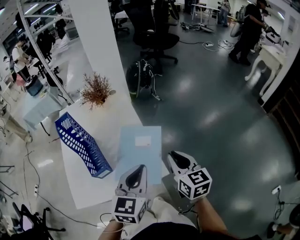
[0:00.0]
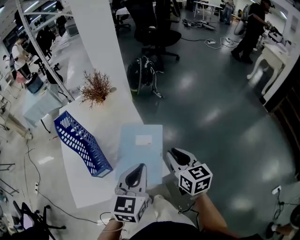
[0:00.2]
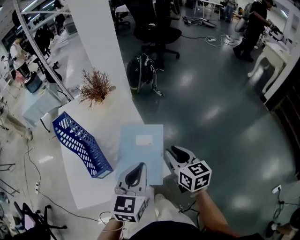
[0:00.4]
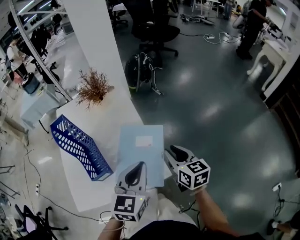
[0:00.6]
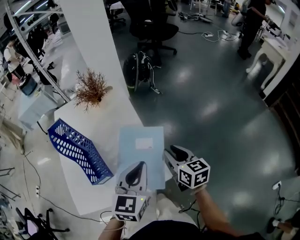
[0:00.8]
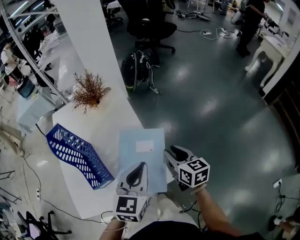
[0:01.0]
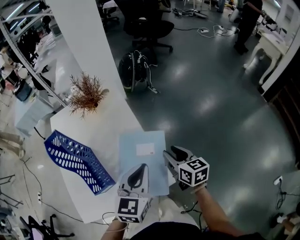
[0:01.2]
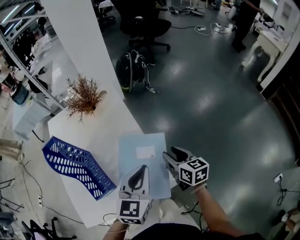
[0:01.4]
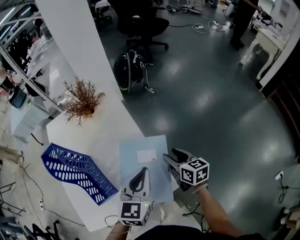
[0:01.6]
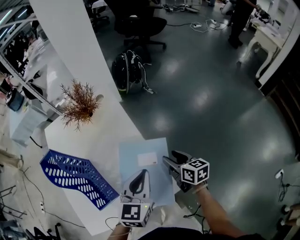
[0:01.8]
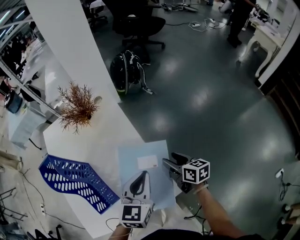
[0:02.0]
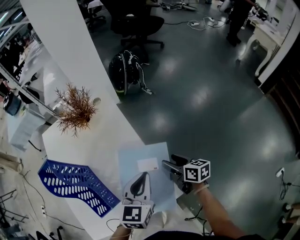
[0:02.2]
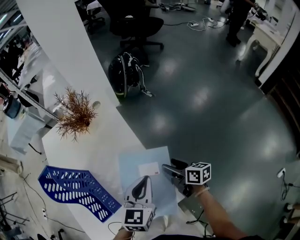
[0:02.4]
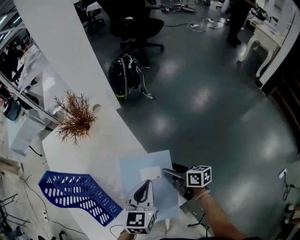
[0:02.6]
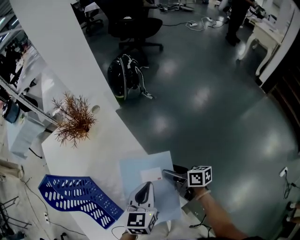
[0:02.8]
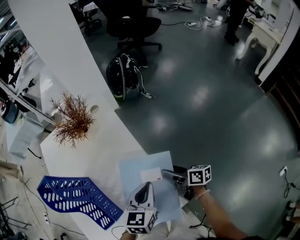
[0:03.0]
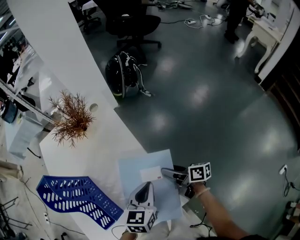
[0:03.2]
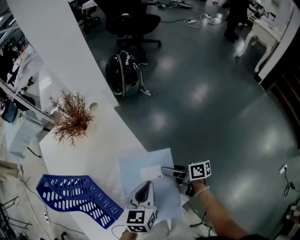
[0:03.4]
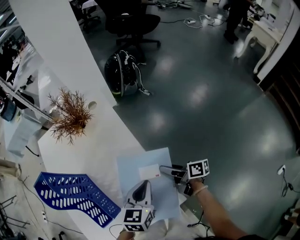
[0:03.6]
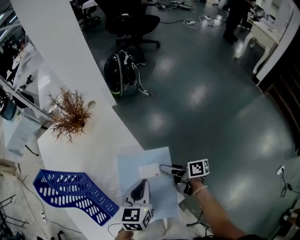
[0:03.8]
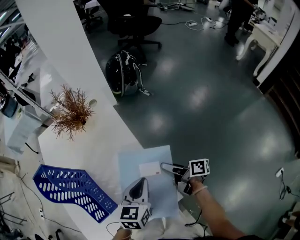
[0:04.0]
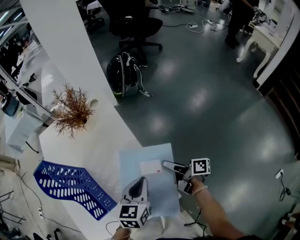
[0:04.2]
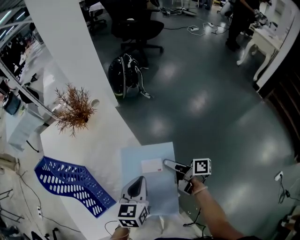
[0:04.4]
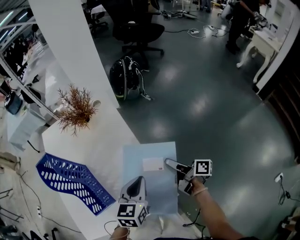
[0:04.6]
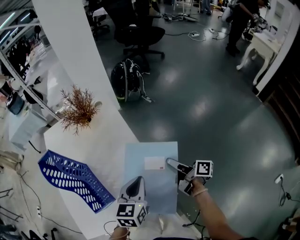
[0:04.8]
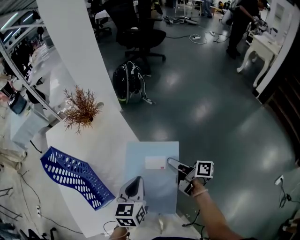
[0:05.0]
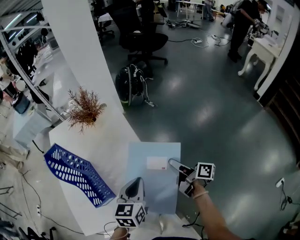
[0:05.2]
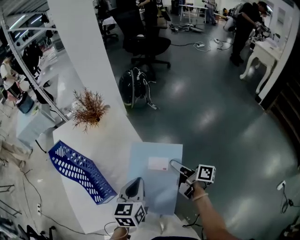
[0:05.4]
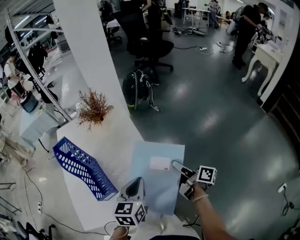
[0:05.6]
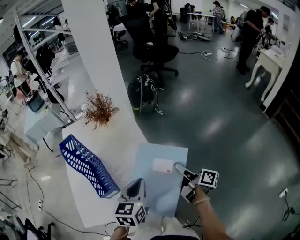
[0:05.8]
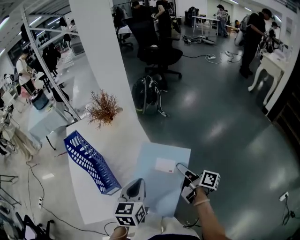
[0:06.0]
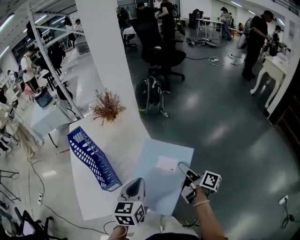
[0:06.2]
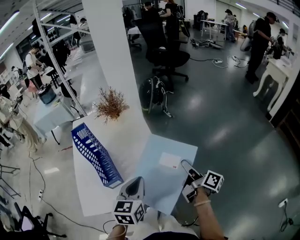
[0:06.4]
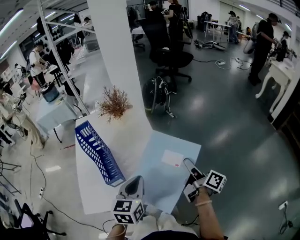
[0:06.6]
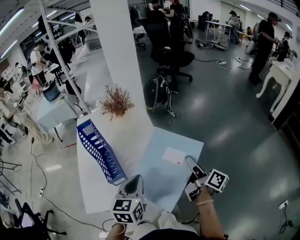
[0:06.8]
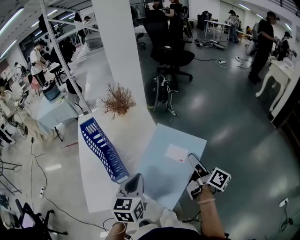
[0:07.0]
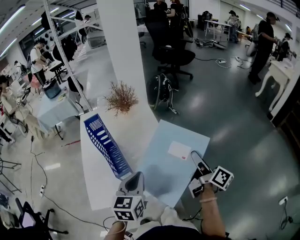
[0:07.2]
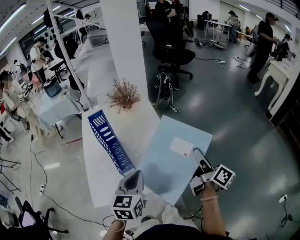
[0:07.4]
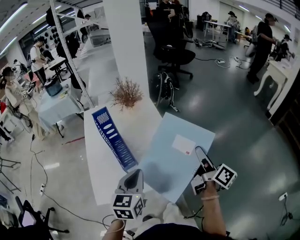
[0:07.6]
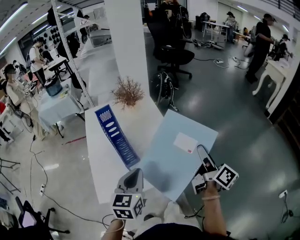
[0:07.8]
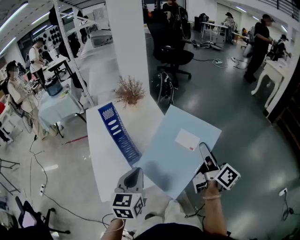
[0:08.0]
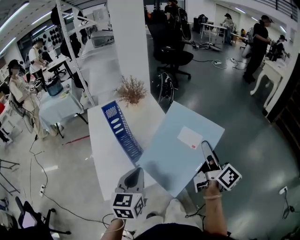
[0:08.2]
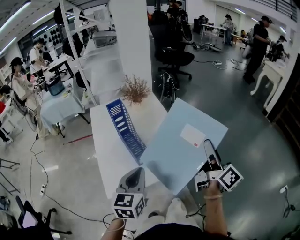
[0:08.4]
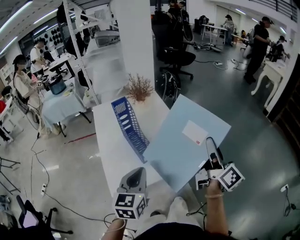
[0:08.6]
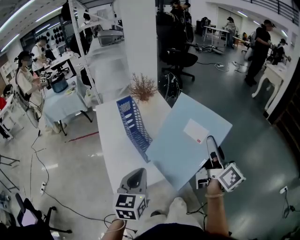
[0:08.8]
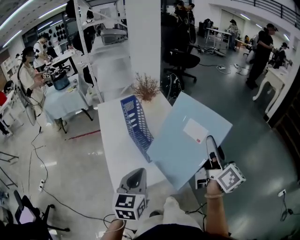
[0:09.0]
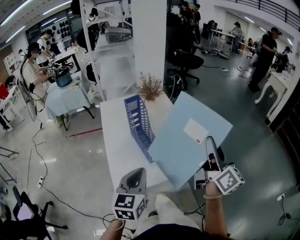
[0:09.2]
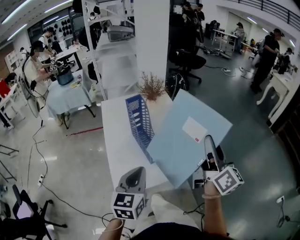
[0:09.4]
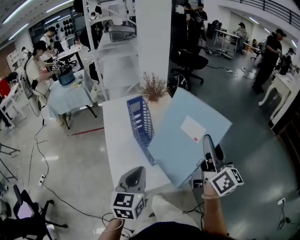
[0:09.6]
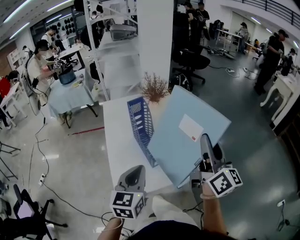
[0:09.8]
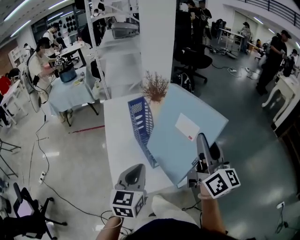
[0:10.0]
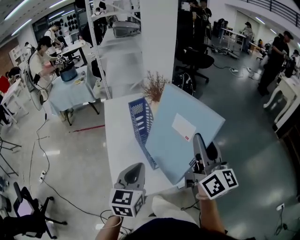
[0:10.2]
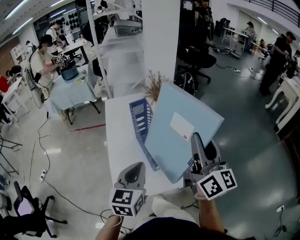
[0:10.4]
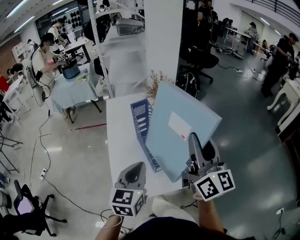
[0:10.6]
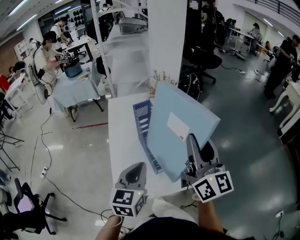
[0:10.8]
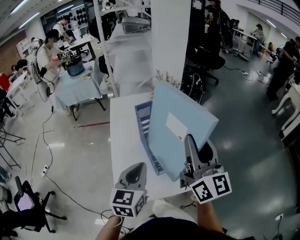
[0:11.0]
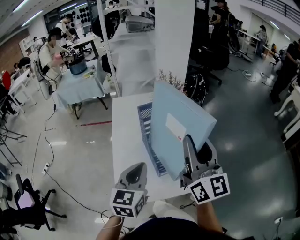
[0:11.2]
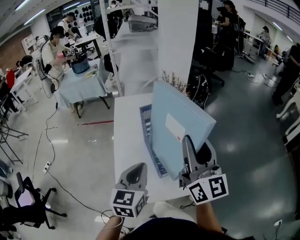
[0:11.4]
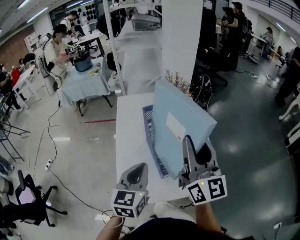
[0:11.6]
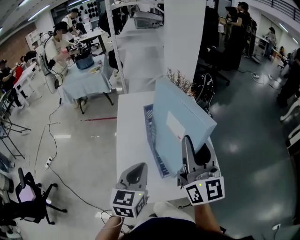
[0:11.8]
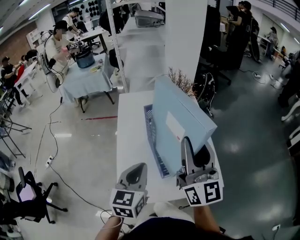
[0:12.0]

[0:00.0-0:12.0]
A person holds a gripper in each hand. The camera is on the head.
0.0 to 1.6 s: Both grippers move forward and downward, roughly 15 cm. The right gripper opens up.
1.6 to 3.0 s: Both grippers travel together downward, approximately 10 cm. The right gripper swivels approximately 30 degrees, and opens its fingers.
3.0 to 4.4 s: The right gripper moves about 5 cm, and closes its fingers.
4.4 to 6.0 s: The grippers both shift backward and upward by some 15 cm.
6.0 to 7.6 s: The left gripper moves to the left and backward, roughly 15 cm, while the right gripper heads upward and backward, covering roughly 15 cm, and changes its angle by approximately 20 degrees.
7.6 to 9.0 s: The left gripper goes roughly 15 cm to the left and backward, while the right gripper moves upward, to the left and backward, about 20 cm, and turns by roughly 30 degrees.
9.0 to 10.4 s: The left gripper heads forward, covering about 10 cm, while the right gripper travels to the left and forward by roughly 15 cm.
10.4 to 12.0 s: The left gripper goes roughly 5 cm forward. The right gripper travels to the left and forward by about 10 cm.

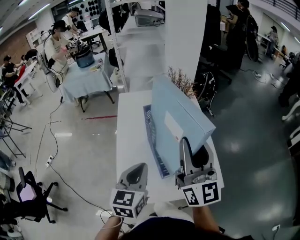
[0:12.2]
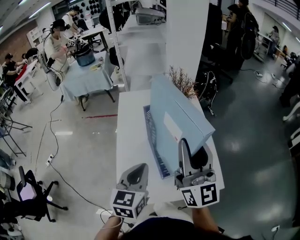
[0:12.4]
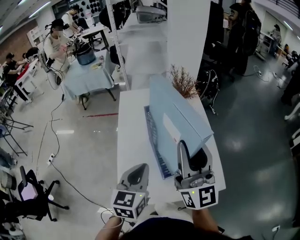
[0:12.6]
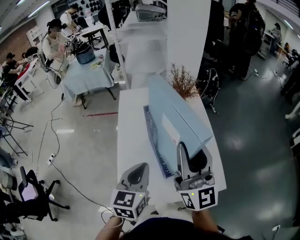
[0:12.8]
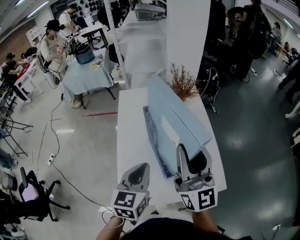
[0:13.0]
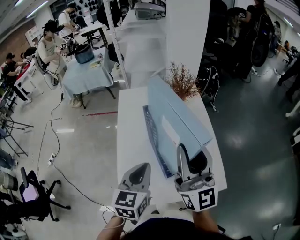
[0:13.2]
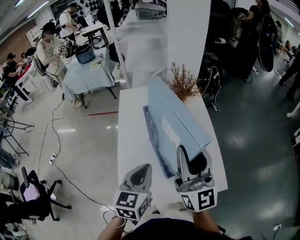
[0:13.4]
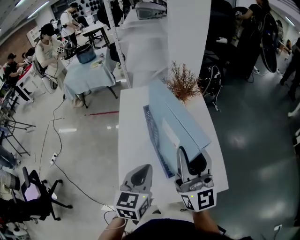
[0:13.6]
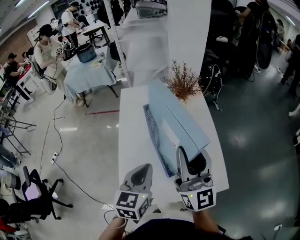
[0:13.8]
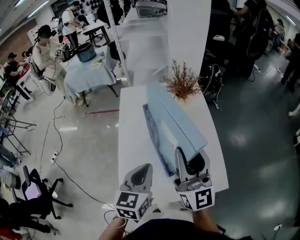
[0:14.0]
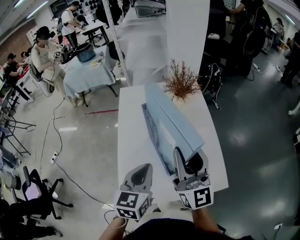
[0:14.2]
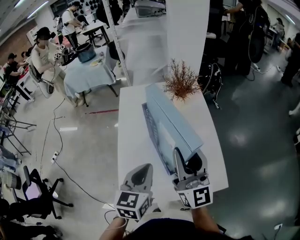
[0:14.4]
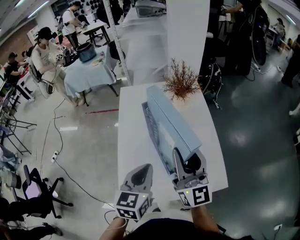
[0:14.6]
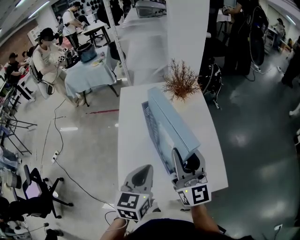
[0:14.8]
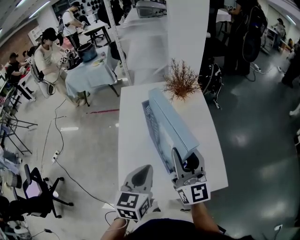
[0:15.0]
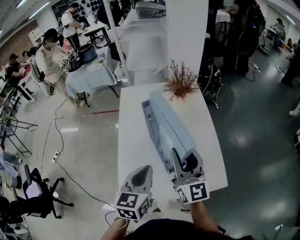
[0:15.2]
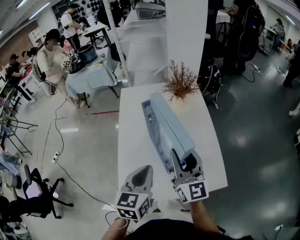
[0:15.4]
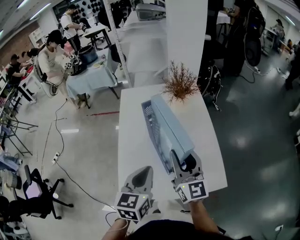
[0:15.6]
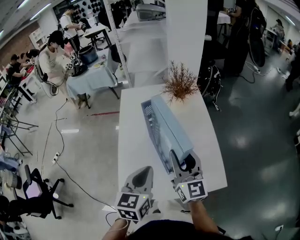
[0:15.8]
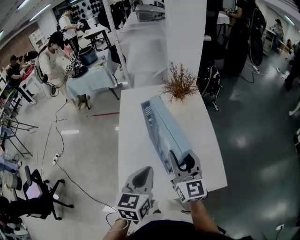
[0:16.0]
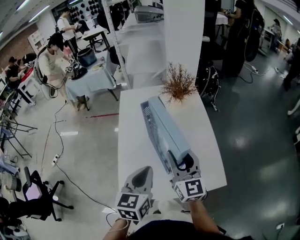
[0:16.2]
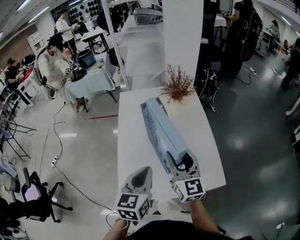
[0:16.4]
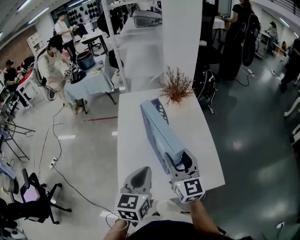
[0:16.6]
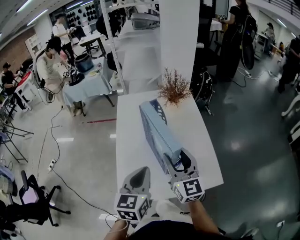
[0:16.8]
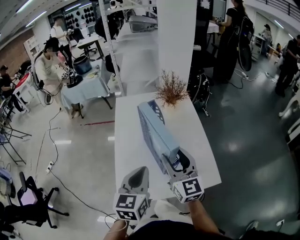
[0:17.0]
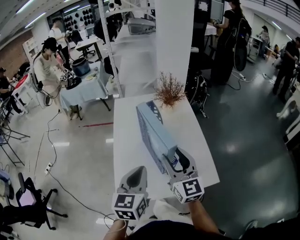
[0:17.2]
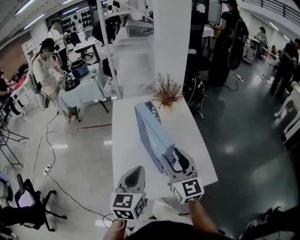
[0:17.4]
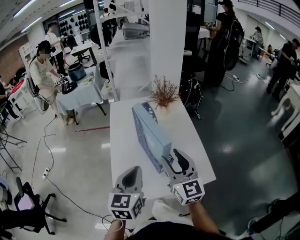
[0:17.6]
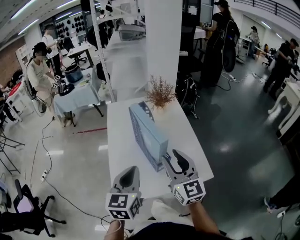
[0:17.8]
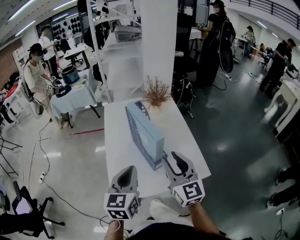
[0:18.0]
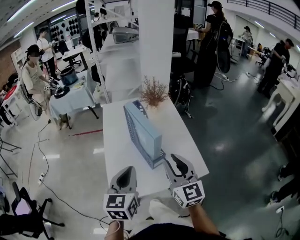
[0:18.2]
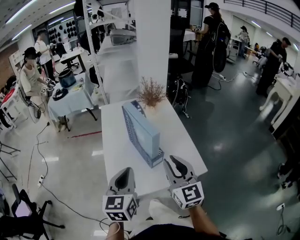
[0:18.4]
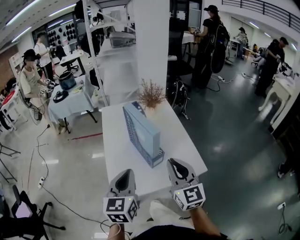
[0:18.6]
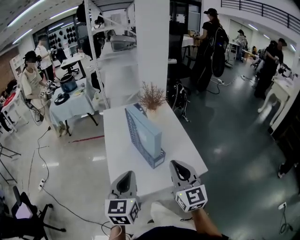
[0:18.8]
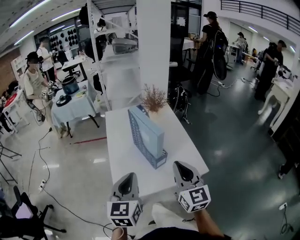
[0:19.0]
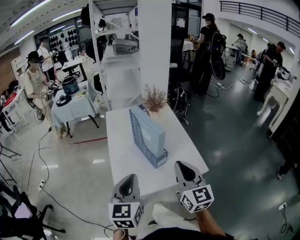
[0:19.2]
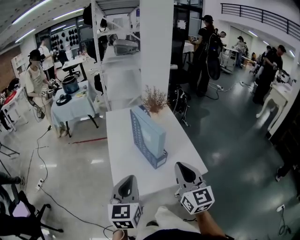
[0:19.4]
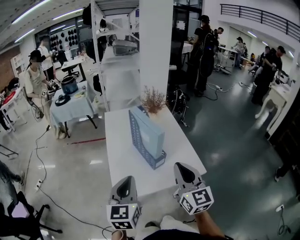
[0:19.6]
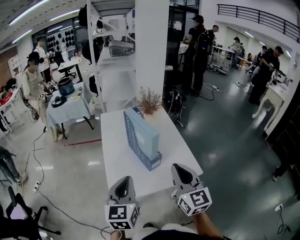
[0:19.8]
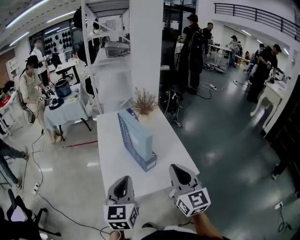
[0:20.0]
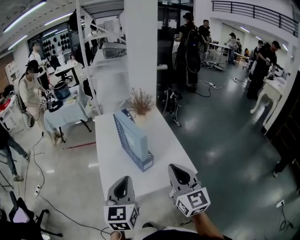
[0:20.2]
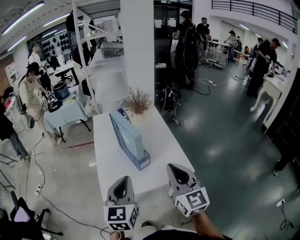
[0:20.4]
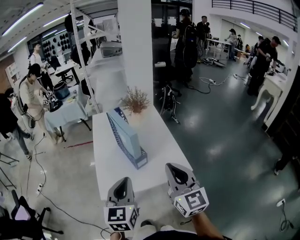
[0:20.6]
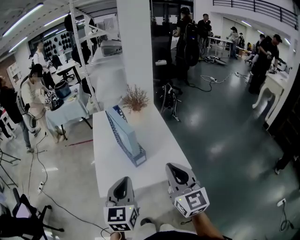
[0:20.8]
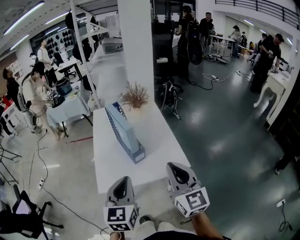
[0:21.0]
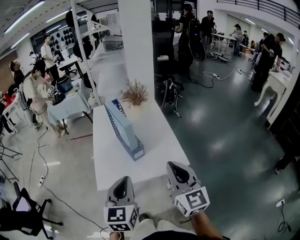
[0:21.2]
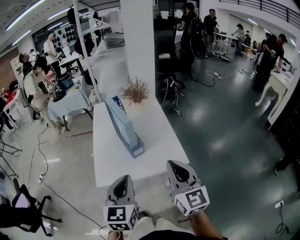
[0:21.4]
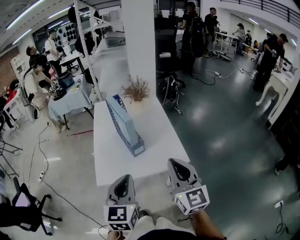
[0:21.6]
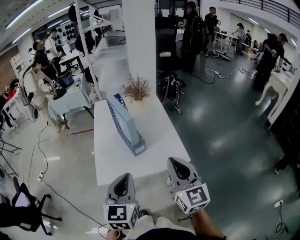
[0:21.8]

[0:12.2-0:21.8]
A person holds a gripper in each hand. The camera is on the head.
12.2 to 13.8 s: The grippers move only a little.
13.8 to 15.4 s: The right gripper heads downward, covering some 10 cm.
15.4 to 17.0 s: There are only small adjustments of the grippers.
17.0 to 18.6 s: The left gripper goes roughly 10 cm backward, while the right gripper heads backward, covering approximately 15 cm, and closes up.
18.6 to 20.2 s: The left gripper changes place by some 5 cm. Meanwhile the right gripper heads backward, covering some 5 cm.
20.2 to 21.8 s: The right gripper heads to the right and backward, covering roughly 10 cm. Meanwhile the left gripper shifts about 10 cm backward and to the right.

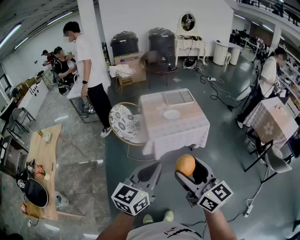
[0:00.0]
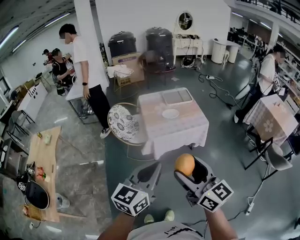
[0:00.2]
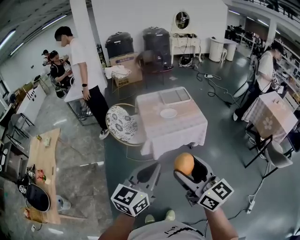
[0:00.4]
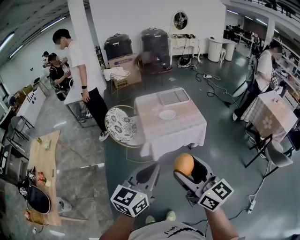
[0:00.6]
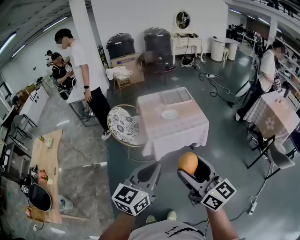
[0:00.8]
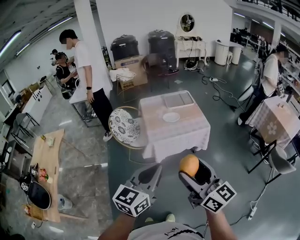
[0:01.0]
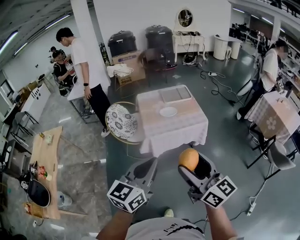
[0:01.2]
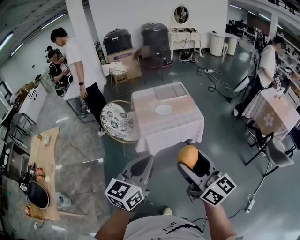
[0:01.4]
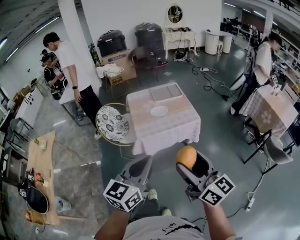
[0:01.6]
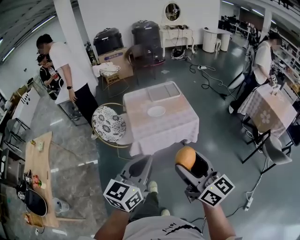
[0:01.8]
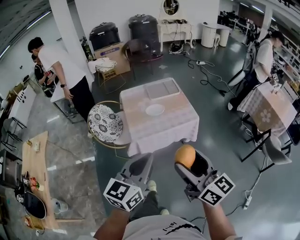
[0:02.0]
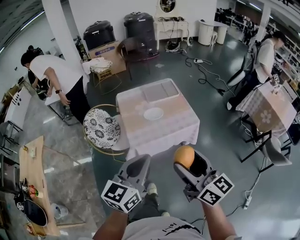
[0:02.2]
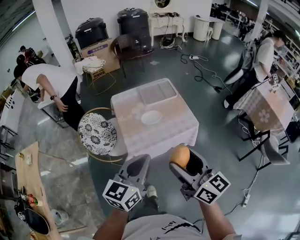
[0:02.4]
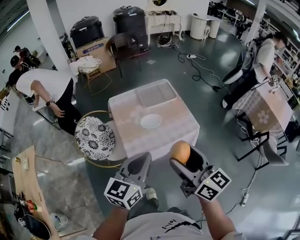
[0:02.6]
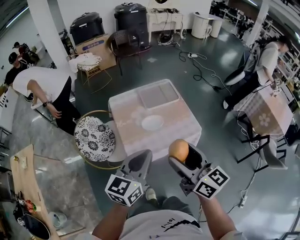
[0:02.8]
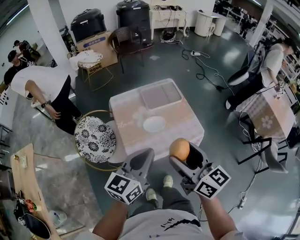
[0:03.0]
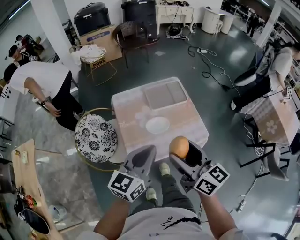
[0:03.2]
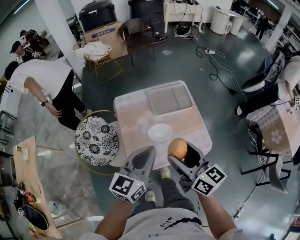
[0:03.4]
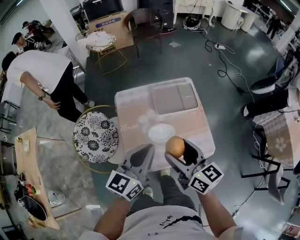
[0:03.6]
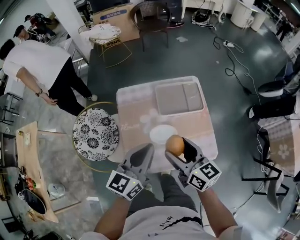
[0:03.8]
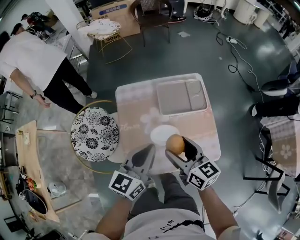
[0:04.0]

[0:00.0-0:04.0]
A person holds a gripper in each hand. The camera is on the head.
0.0 to 1.4 s: The right gripper travels to the right by roughly 10 cm. Meanwhile the left gripper heads to the right, covering roughly 5 cm.
1.4 to 2.6 s: Both grippers travel together forward, about 30 cm.
2.6 to 4.0 s: The grippers both shift forward and downward by some 35 cm. The right gripper turns by approximately 20 degrees.
